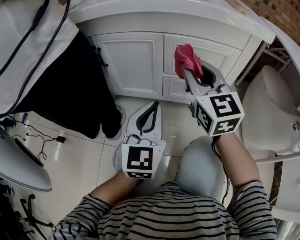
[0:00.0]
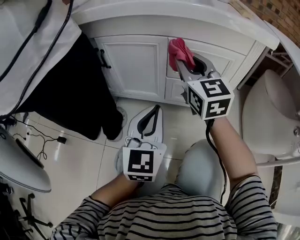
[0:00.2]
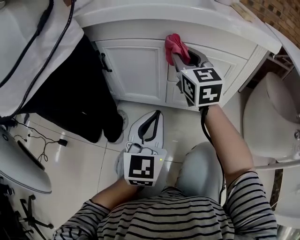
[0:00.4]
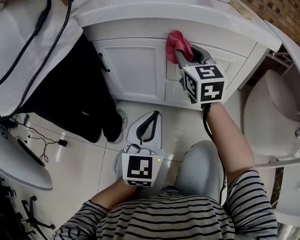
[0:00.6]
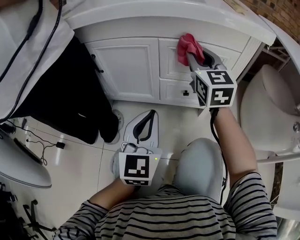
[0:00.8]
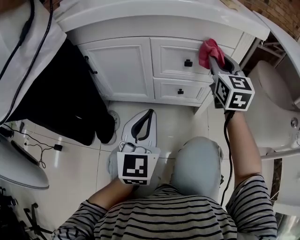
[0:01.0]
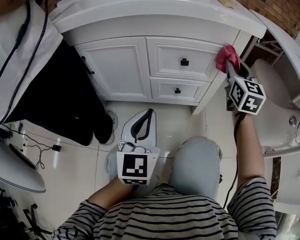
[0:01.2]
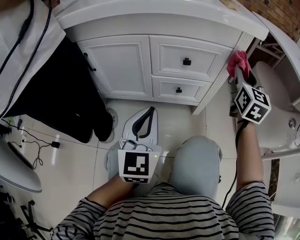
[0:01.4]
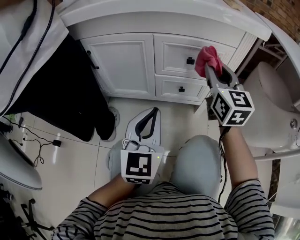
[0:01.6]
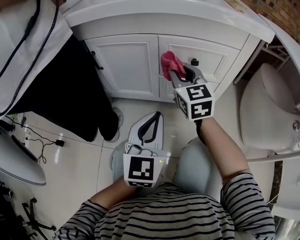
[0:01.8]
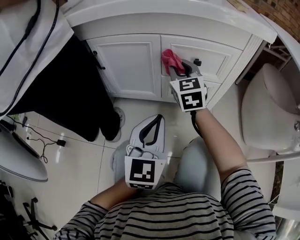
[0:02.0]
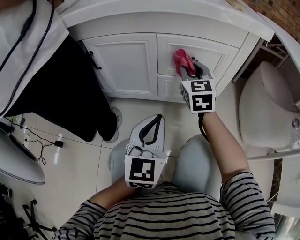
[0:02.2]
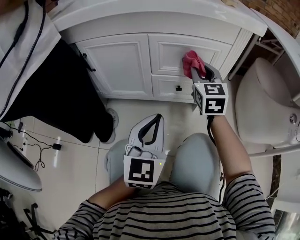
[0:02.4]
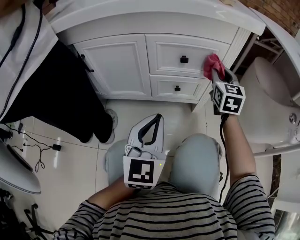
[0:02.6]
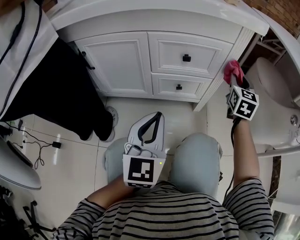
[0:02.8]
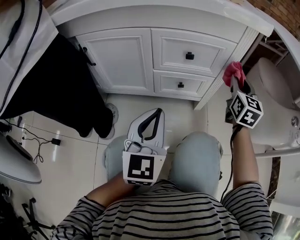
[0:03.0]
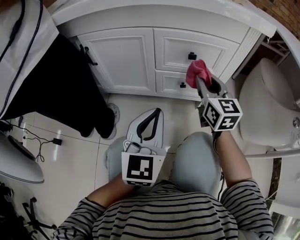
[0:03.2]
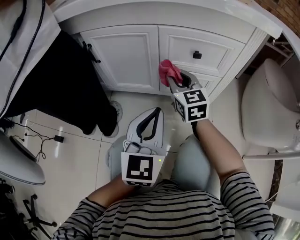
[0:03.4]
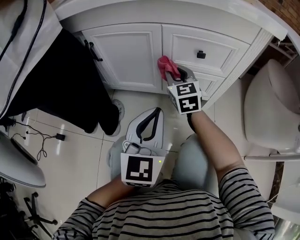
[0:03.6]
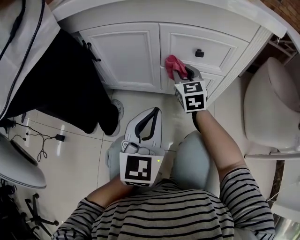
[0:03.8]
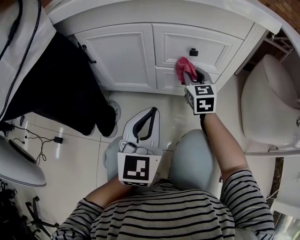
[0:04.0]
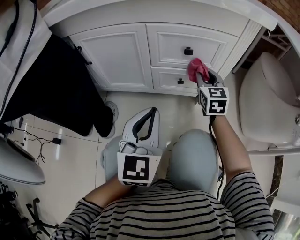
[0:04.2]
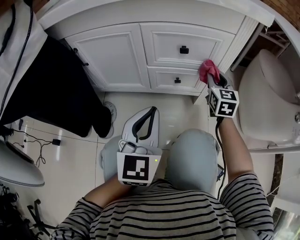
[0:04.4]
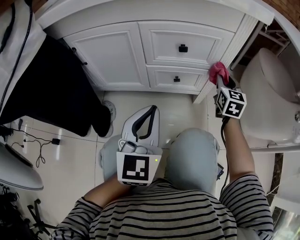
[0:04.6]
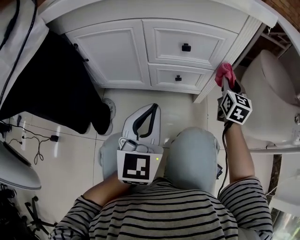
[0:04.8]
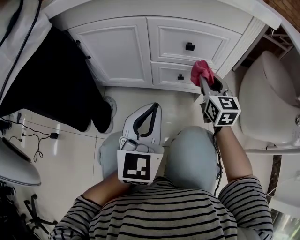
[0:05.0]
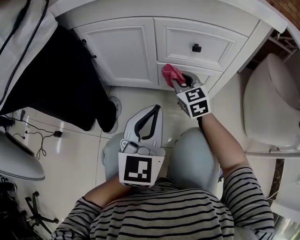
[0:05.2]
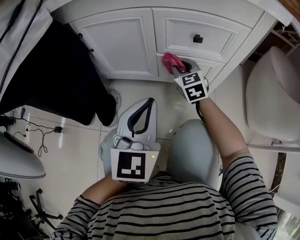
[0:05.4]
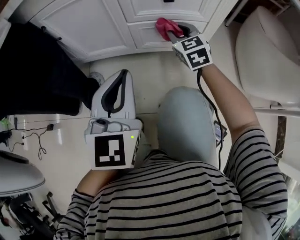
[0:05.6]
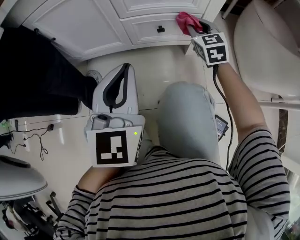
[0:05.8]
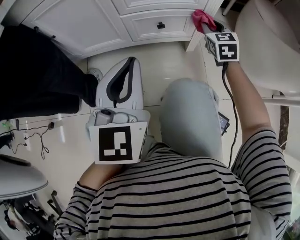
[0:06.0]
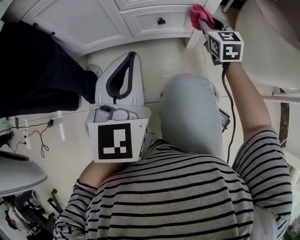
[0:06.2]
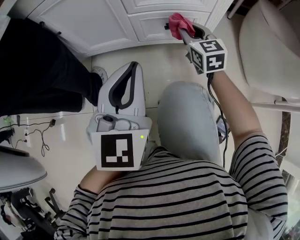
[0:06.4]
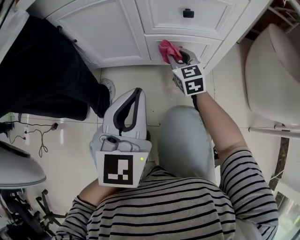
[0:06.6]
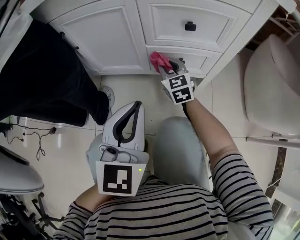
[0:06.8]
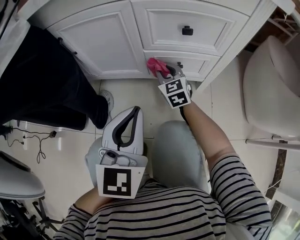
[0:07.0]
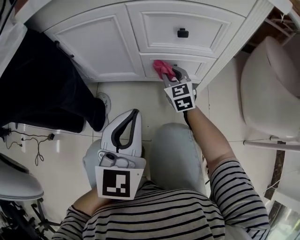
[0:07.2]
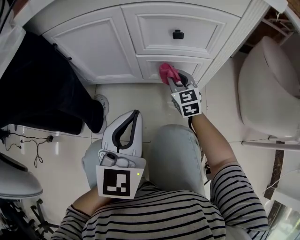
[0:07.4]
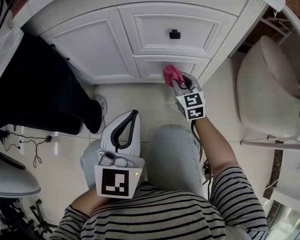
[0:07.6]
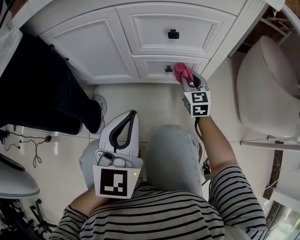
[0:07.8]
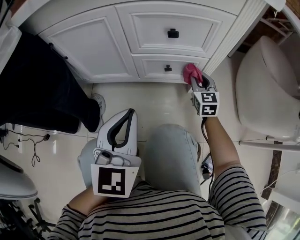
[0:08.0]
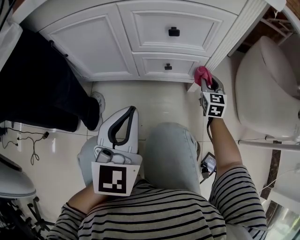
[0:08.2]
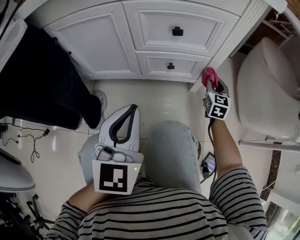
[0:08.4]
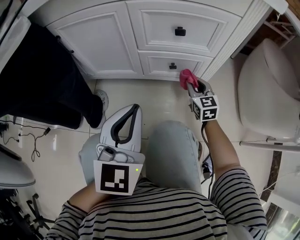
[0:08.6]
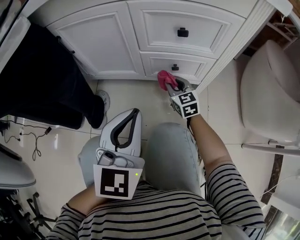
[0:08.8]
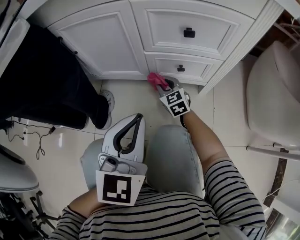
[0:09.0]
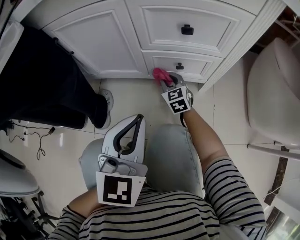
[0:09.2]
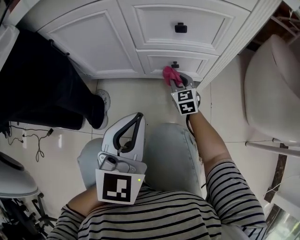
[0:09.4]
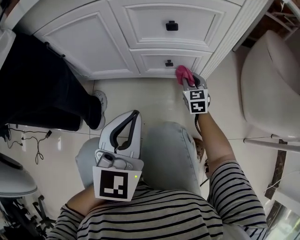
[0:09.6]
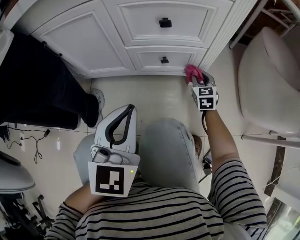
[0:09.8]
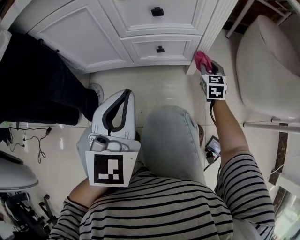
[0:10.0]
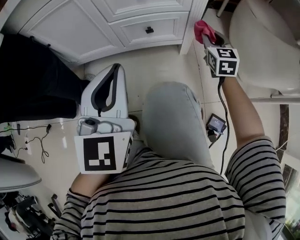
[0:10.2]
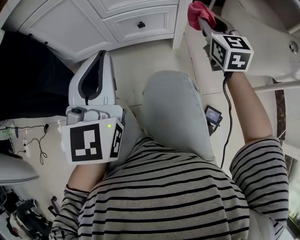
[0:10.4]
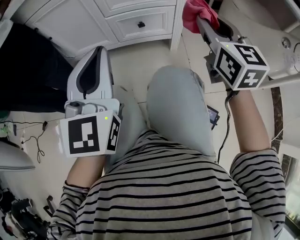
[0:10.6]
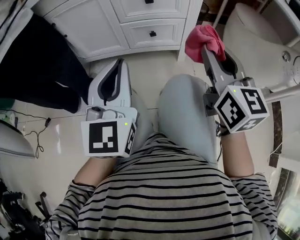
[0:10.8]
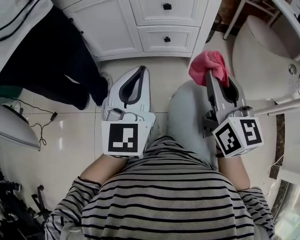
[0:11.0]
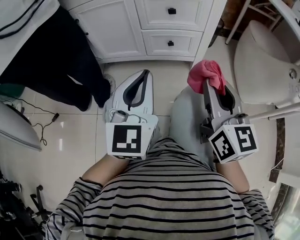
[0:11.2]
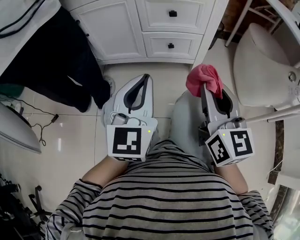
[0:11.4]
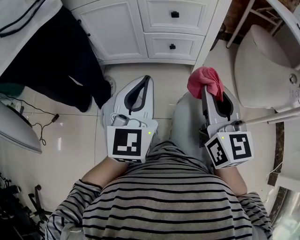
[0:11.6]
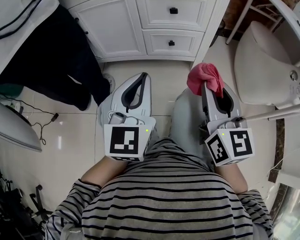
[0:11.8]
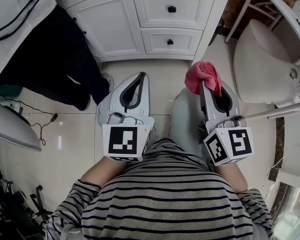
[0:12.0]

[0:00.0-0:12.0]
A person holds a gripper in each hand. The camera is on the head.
0:00.0 to 0:01.6: The right gripper goes left and right, some 30 cm each way, reversing 2 times.
0:01.6 to 0:03.0: The right gripper is displaced to the right and downward by roughly 15 cm.
0:03.0 to 0:04.4: The right gripper is displaced downward by approximately 10 cm, and travels to the left and back again, about 30 cm each way.
0:04.4 to 0:06.0: The right gripper moves left and right over about 25 cm, changing direction 2 times.
0:06.0 to 0:07.6: The right gripper heads to the left, covering about 15 cm.
0:07.6 to 0:09.0: The right gripper is displaced to the left and downward by approximately 15 cm.
0:09.0 to 0:10.4: The right gripper is displaced to the right and upward by roughly 35 cm, and swivels some 30 degrees, while the left gripper shifts about 10 cm upward.
0:10.4 to 0:12.0: The left gripper shifts approximately 5 cm backward; the right gripper travels backward, to the left and upward by about 25 cm.

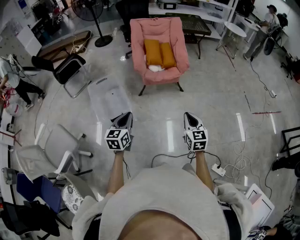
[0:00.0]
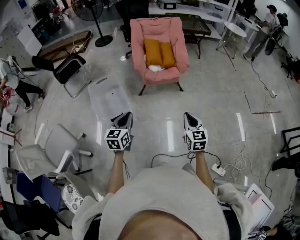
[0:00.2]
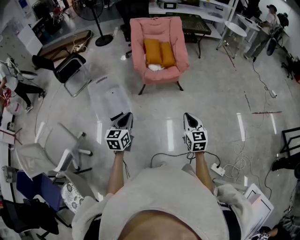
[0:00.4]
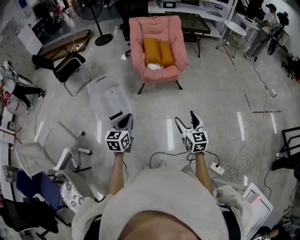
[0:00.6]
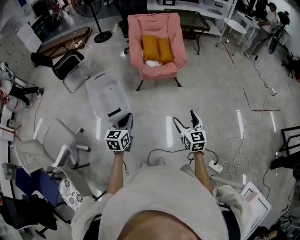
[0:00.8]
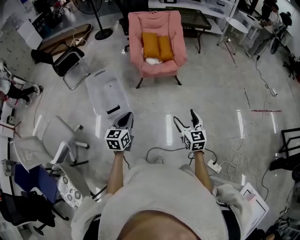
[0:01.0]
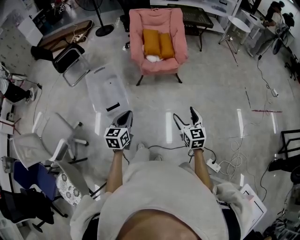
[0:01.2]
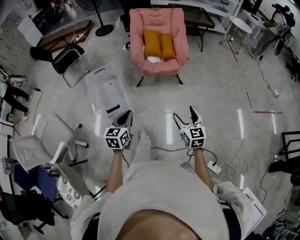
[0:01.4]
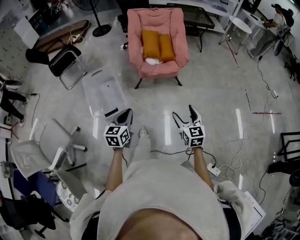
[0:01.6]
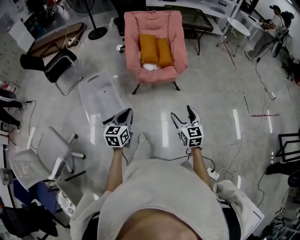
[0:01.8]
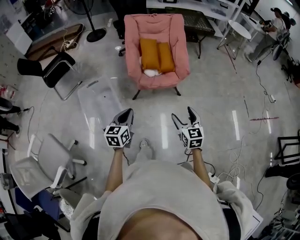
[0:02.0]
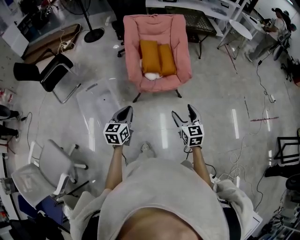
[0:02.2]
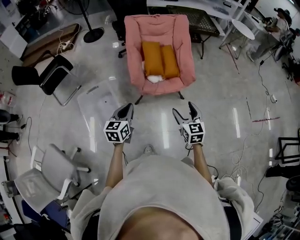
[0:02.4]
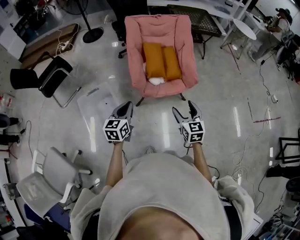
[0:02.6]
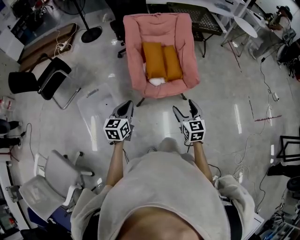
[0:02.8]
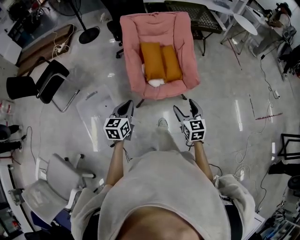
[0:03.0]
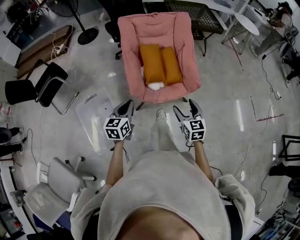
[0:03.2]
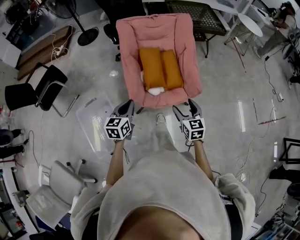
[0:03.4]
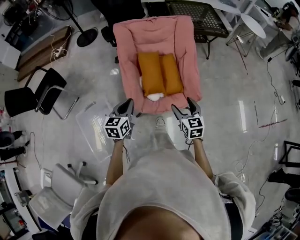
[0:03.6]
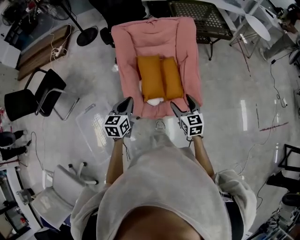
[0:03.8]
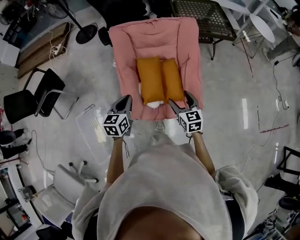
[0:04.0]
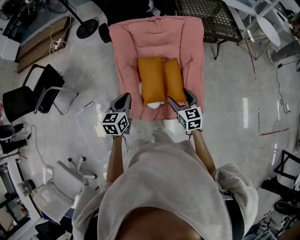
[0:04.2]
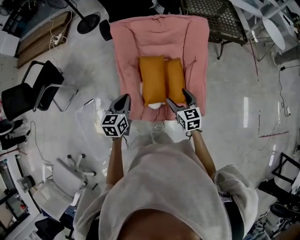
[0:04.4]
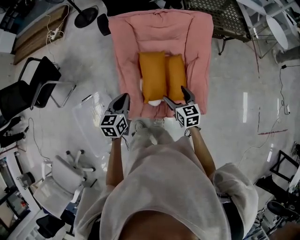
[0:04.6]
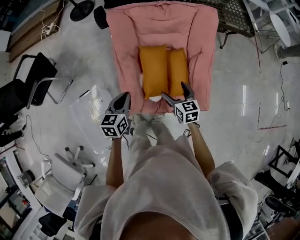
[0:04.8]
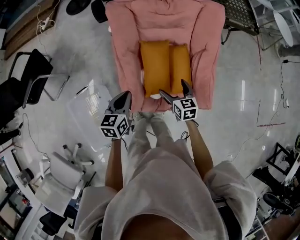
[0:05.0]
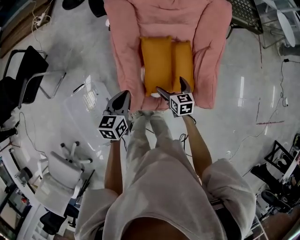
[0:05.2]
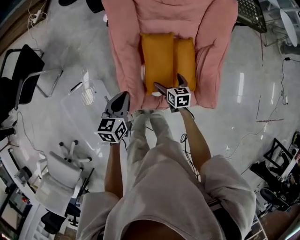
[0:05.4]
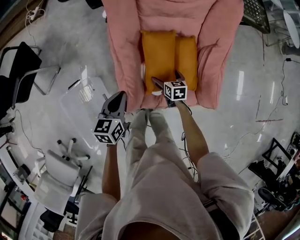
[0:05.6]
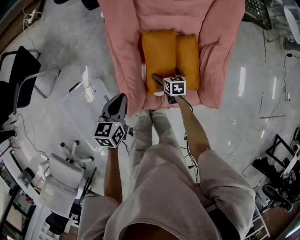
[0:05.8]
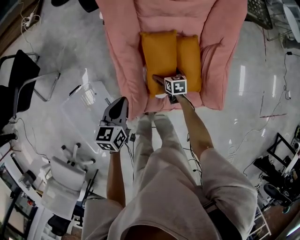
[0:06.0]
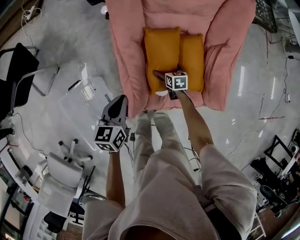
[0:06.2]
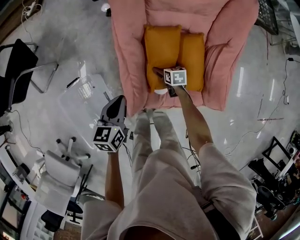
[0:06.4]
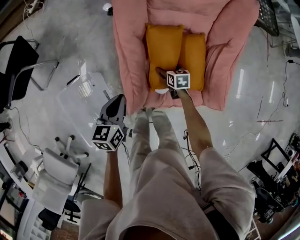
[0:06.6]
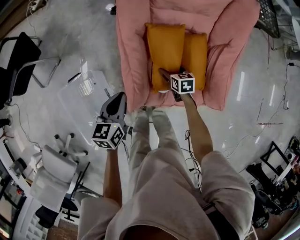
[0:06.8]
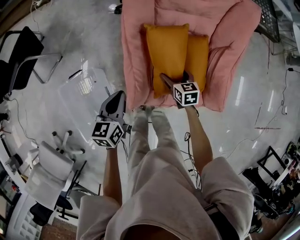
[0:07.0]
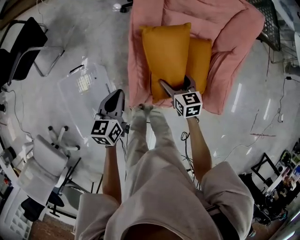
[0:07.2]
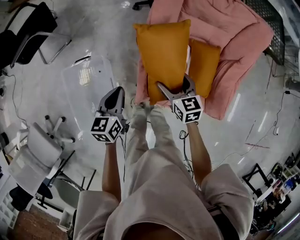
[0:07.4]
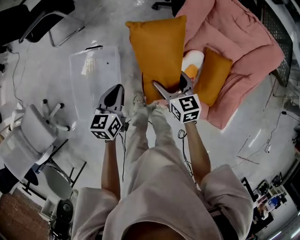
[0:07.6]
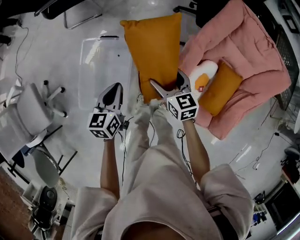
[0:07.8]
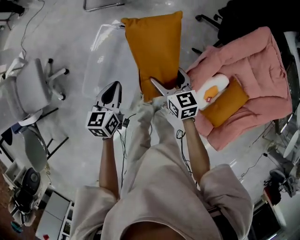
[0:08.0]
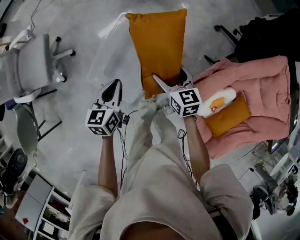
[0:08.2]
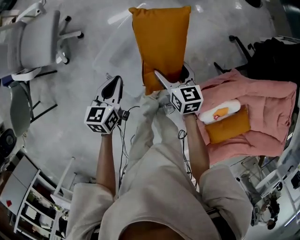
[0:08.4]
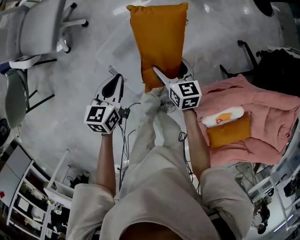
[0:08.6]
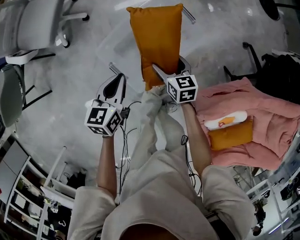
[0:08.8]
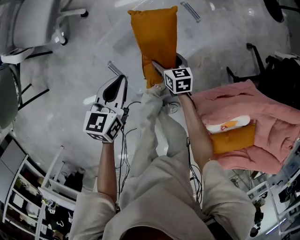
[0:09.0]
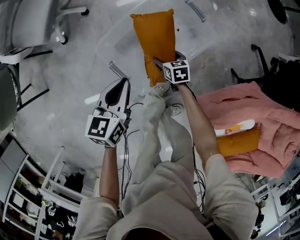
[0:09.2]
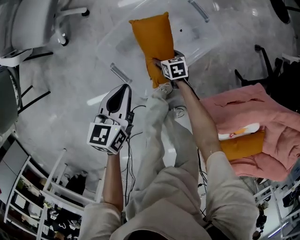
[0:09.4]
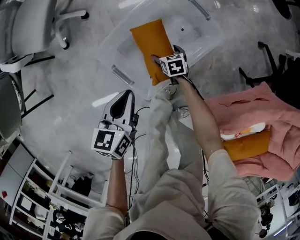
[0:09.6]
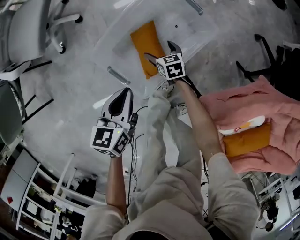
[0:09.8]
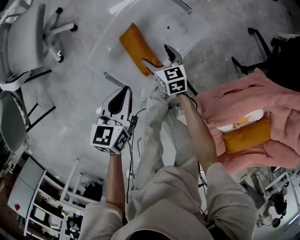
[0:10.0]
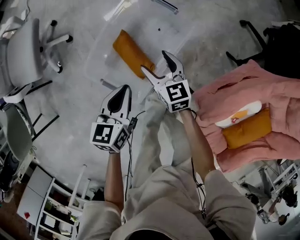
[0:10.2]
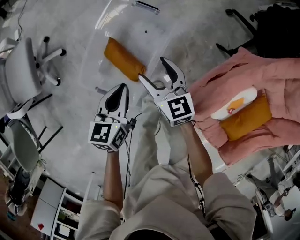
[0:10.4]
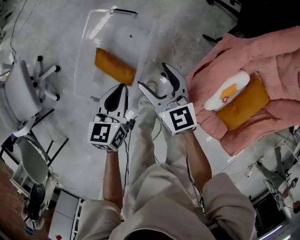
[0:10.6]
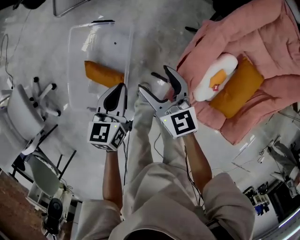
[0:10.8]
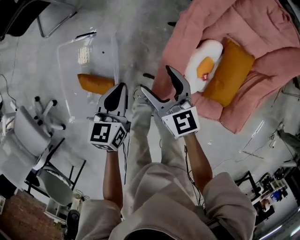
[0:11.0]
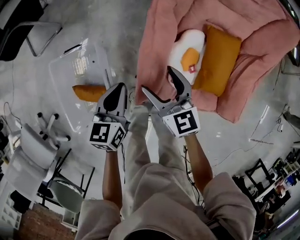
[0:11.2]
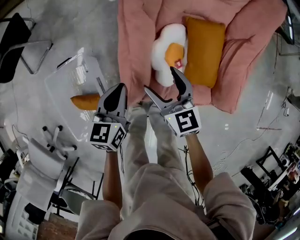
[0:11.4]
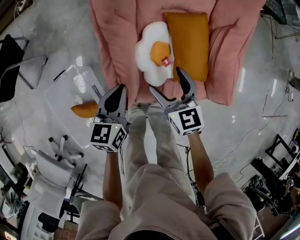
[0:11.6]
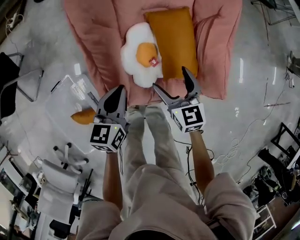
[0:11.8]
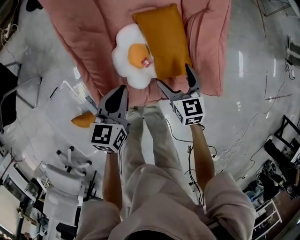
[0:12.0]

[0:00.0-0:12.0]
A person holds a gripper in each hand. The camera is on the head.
0:00.0 to 0:01.6: The right gripper goes some 10 cm forward, and opens up; the left gripper travels forward and to the right by about 10 cm.
0:01.6 to 0:03.0: The pair of grippers is taken forward, approximately 40 cm.
0:03.0 to 0:04.4: Both grippers are carried forward, about 40 cm.
0:04.4 to 0:06.0: The left gripper goes some 20 cm downward and to the left. The right gripper is displaced downward by roughly 35 cm, turns by about 30 degrees, and opens.
0:06.0 to 0:07.6: The left gripper shifts about 20 cm to the left and backward, and turns by about 30 degrees, while the right gripper is displaced upward and to the left by approximately 30 cm, and changes its angle by about 40 degrees.
0:07.6 to 0:09.0: The left gripper shifts by about 40 cm, and turns by approximately 50 degrees, while the right gripper moves some 60 cm, and turns by roughly 50 degrees.
0:09.0 to 0:10.4: The right gripper shifts approximately 15 cm upward, and rotates about 30 degrees; the left gripper shifts by approximately 15 cm.
0:10.4 to 0:12.0: The pair of grippers is taken approximately 60 cm. The right gripper swivels about 70 degrees; the left gripper turns by approximately 60 degrees.
